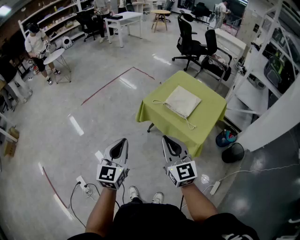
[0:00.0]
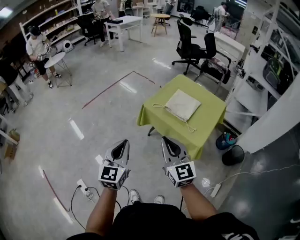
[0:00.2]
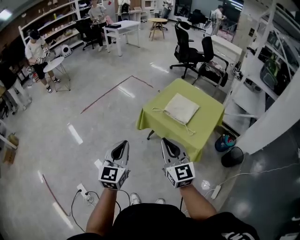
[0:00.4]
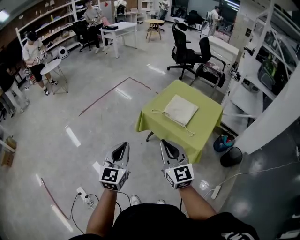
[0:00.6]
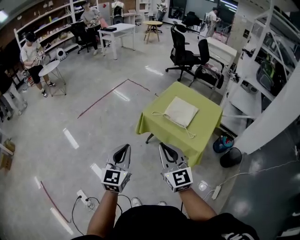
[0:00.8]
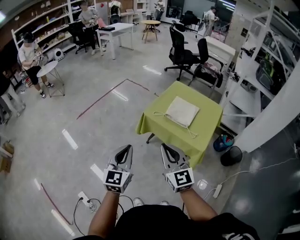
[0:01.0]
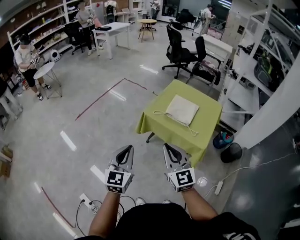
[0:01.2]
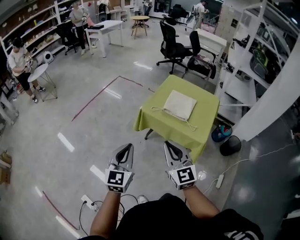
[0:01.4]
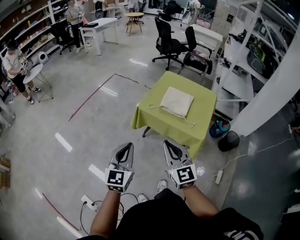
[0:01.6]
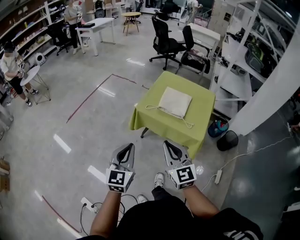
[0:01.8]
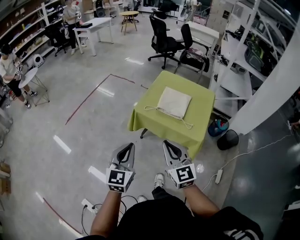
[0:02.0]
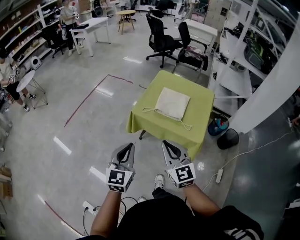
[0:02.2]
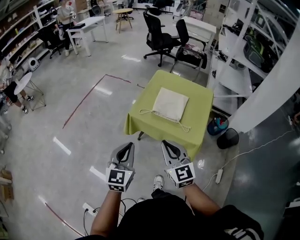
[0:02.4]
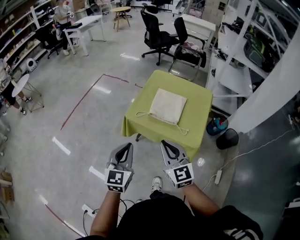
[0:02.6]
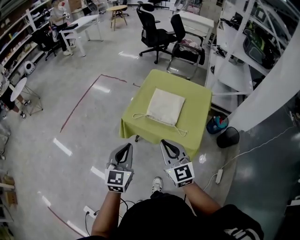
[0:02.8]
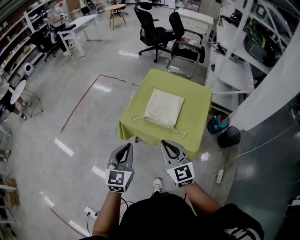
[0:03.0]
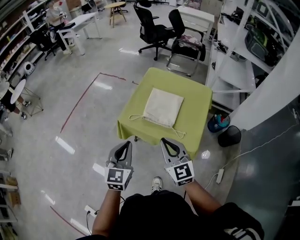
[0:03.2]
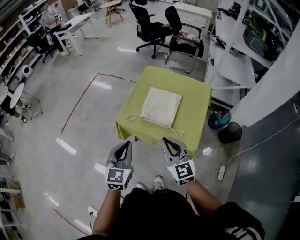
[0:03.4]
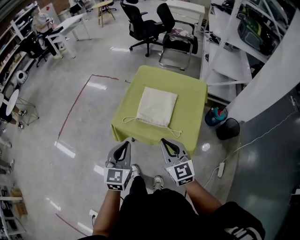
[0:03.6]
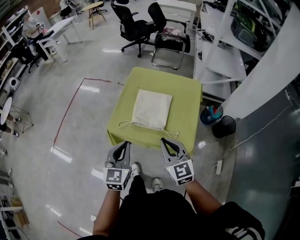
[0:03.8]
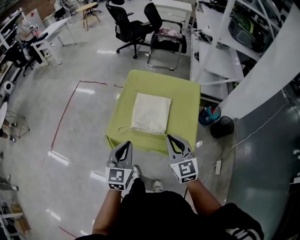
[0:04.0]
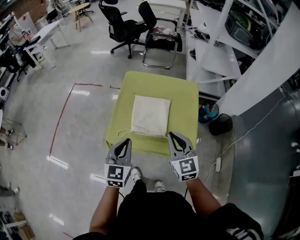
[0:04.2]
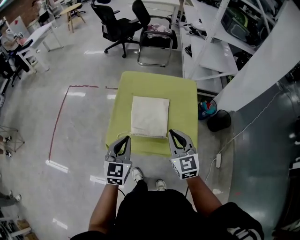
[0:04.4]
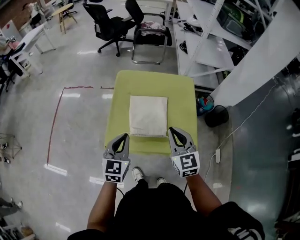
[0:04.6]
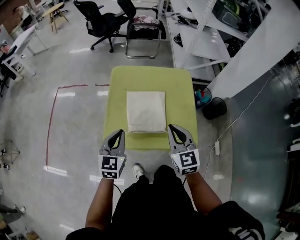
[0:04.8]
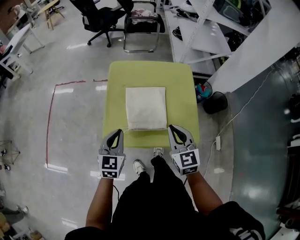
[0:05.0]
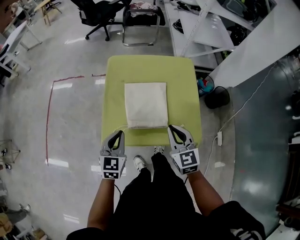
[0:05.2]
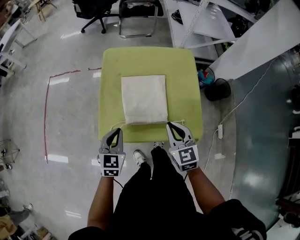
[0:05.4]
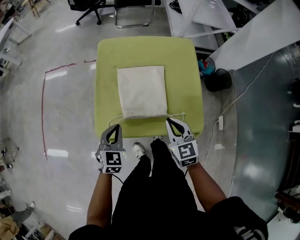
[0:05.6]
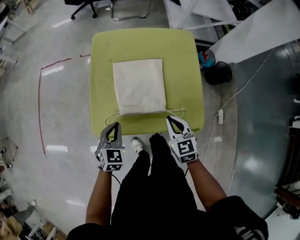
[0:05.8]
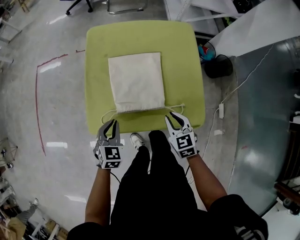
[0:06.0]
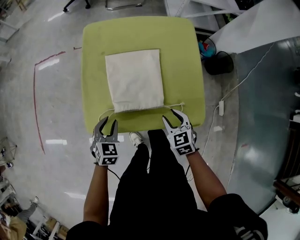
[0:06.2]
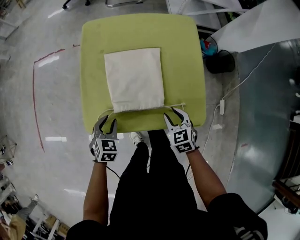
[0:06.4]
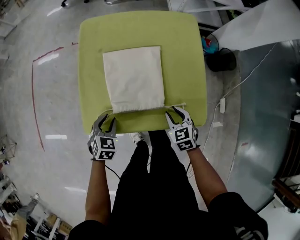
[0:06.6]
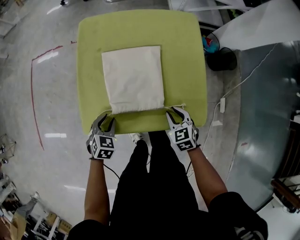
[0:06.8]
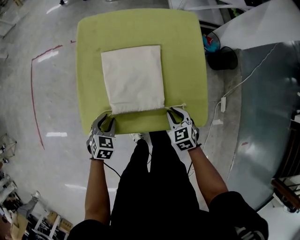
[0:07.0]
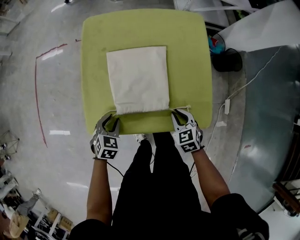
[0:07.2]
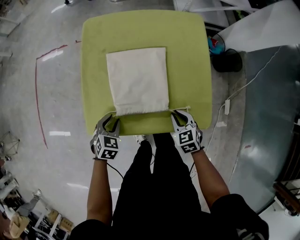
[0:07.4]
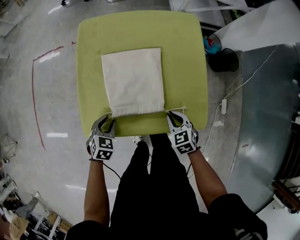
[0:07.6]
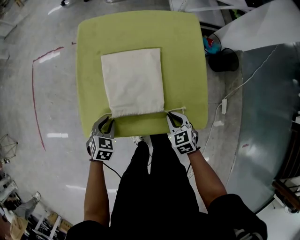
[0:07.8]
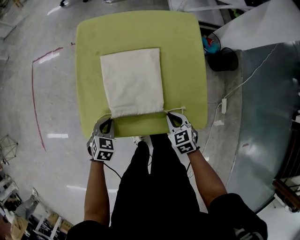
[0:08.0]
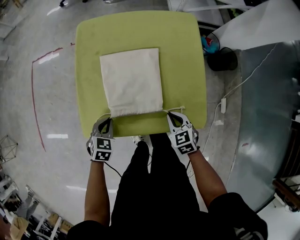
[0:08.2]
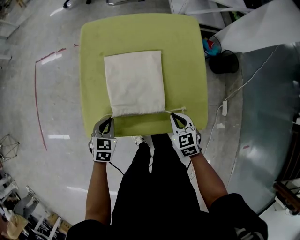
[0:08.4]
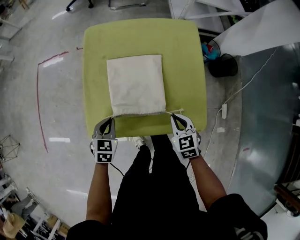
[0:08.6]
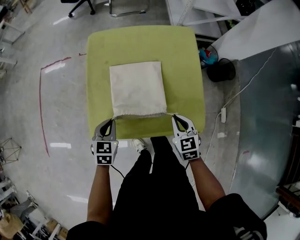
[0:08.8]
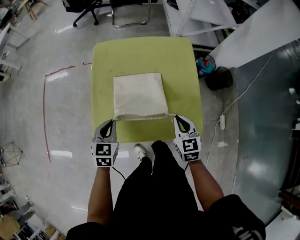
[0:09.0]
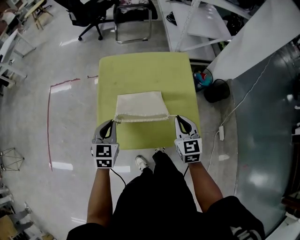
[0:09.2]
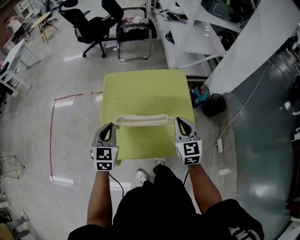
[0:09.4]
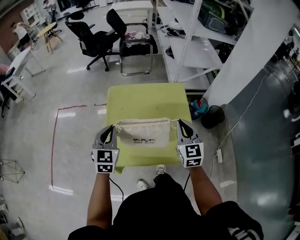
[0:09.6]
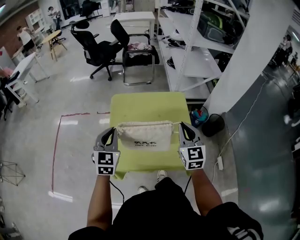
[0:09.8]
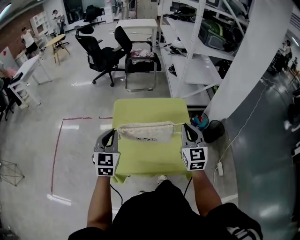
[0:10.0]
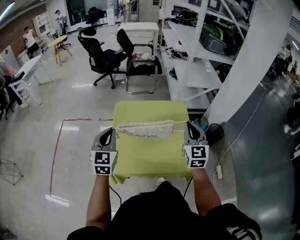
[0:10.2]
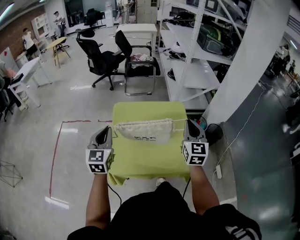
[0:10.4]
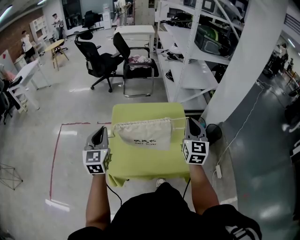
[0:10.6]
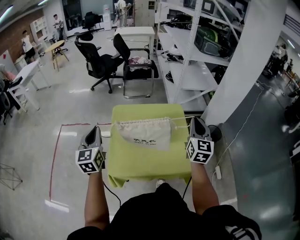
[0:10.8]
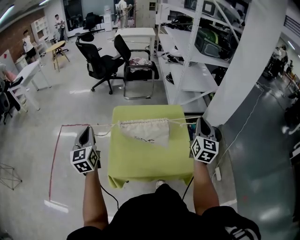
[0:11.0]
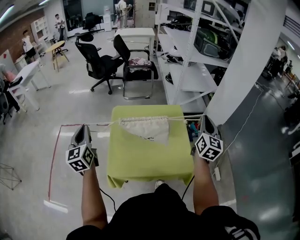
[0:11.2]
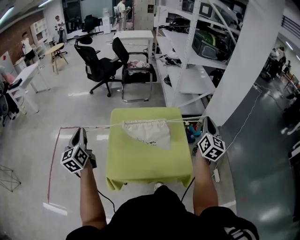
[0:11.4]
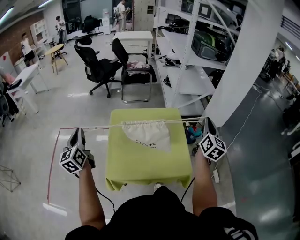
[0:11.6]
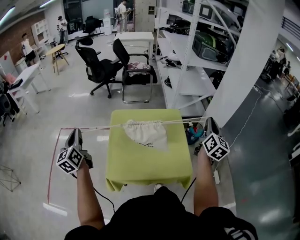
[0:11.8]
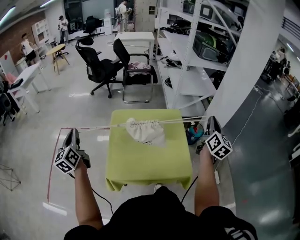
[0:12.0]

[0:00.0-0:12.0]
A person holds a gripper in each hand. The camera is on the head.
0:00.0 to 0:01.6: The right gripper shifts roughly 5 cm to the left, while the left gripper shifts by some 5 cm.
0:01.6 to 0:03.0: The two grippers go about 20 cm forward and to the right.
0:03.0 to 0:04.4: The right gripper heads forward and to the right, covering approximately 20 cm, and changes its angle by about 20 degrees. Meanwhile the left gripper is displaced forward by roughly 20 cm.
0:04.4 to 0:06.0: Both grippers travel together downward, roughly 25 cm. The right gripper swivels roughly 30 degrees. The left gripper turns by about 30 degrees.
0:06.0 to 0:07.6: The grippers both shift downward by roughly 5 cm. The left gripper opens its fingers; the right gripper opens, then closes once more.
0:07.6 to 0:09.0: Both grippers move upward, approximately 15 cm. The right gripper turns by some 20 degrees. Meanwhile the left gripper changes its angle by approximately 20 degrees, and closes.
0:09.0 to 0:10.4: Both grippers move upward, roughly 25 cm. The left gripper tips its fingers upward by some 30 degrees. Meanwhile the right gripper tilts its fingers roughly 30 degrees upward.
0:10.4 to 0:12.0: The right gripper is displaced to the right by some 15 cm, and swivels about 30 degrees. Meanwhile the left gripper is displaced to the left by approximately 15 cm, and swivels about 30 degrees.

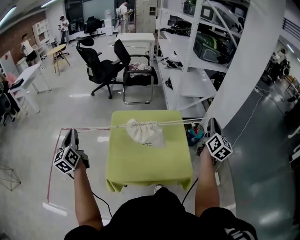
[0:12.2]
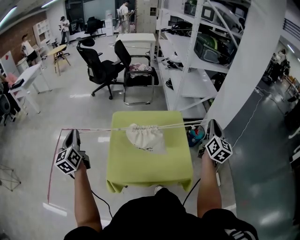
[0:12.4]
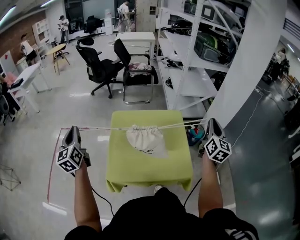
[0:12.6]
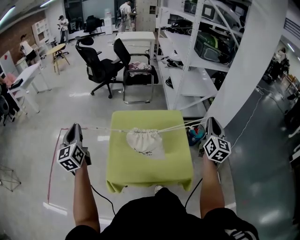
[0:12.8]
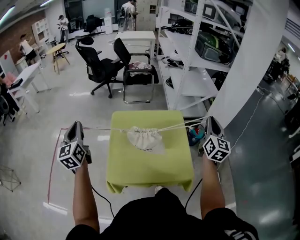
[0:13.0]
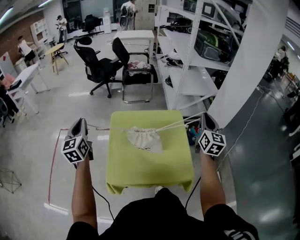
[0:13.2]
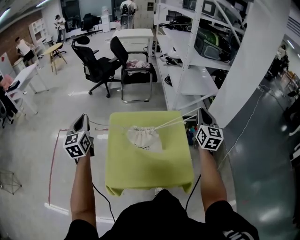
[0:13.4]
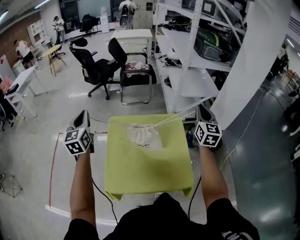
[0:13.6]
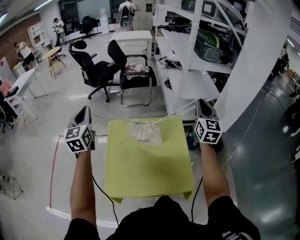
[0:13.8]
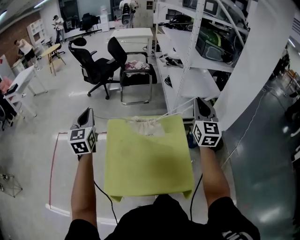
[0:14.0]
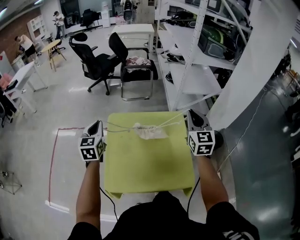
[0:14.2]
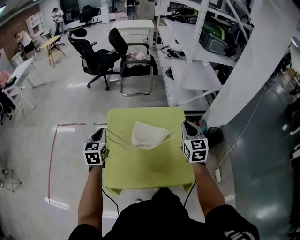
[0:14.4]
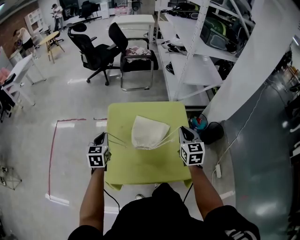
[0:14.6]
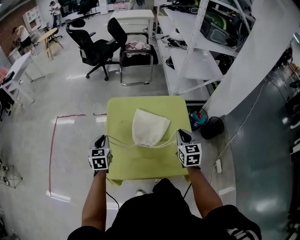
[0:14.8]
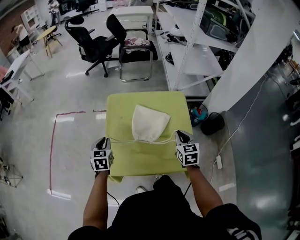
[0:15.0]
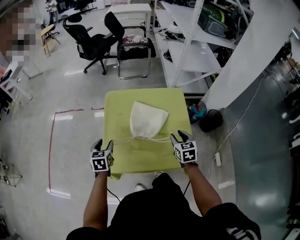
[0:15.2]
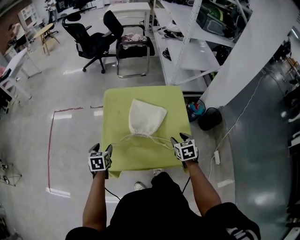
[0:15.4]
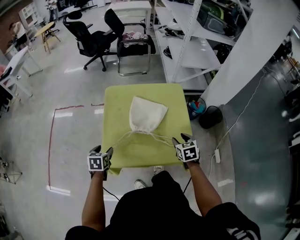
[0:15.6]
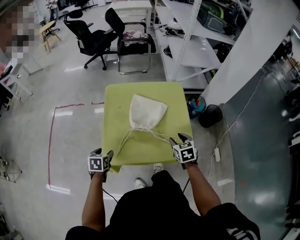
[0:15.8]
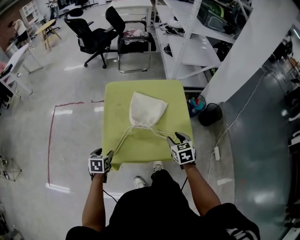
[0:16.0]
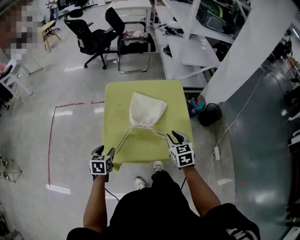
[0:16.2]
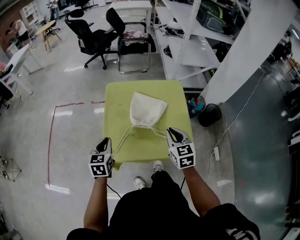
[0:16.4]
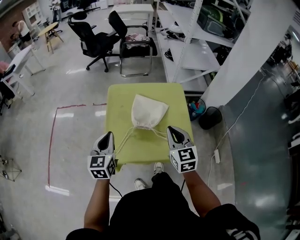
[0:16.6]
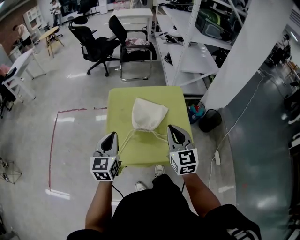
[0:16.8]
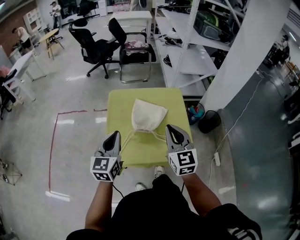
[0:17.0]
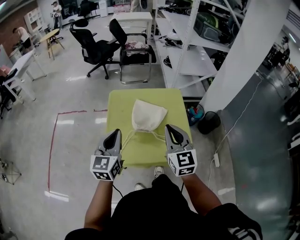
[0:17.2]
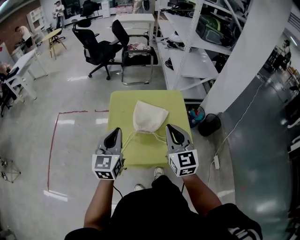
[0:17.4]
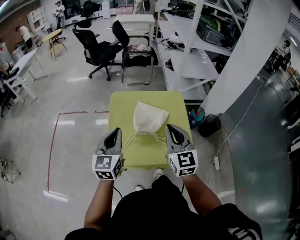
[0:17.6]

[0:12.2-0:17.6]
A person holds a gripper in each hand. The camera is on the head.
0:12.2 to 0:13.6: The left gripper goes about 20 cm forward and to the right, and changes its angle by some 20 degrees. The right gripper heads forward and to the left, covering approximately 15 cm, and changes its angle by about 30 degrees.
0:13.6 to 0:15.0: The left gripper goes roughly 30 cm downward and backward, and angles its fingers downward, by roughly 30 degrees, while the right gripper travels downward, backward and to the left by approximately 30 cm, and changes its angle by some 30 degrees.
0:15.0 to 0:16.2: The grippers both shift backward by roughly 10 cm. The left gripper opens; the right gripper opens.
0:16.2 to 0:17.6: Both grippers move upward, some 20 cm. The left gripper tilts its fingers some 40 degrees upward, and closes its fingers; the right gripper tilts its fingers some 30 degrees upward, and closes up.

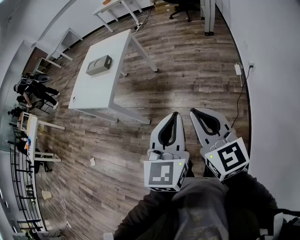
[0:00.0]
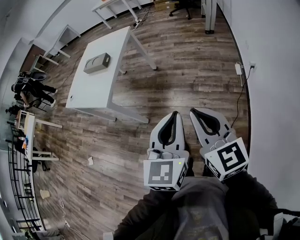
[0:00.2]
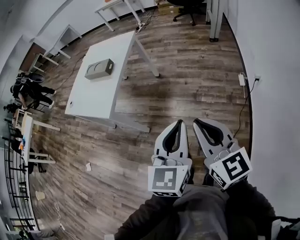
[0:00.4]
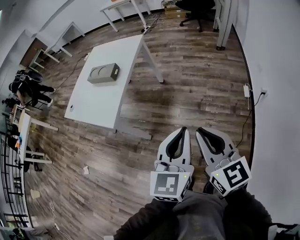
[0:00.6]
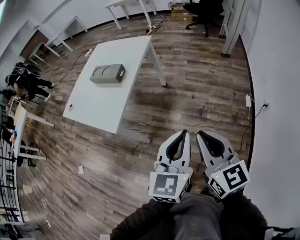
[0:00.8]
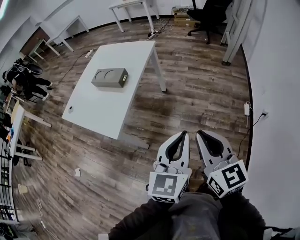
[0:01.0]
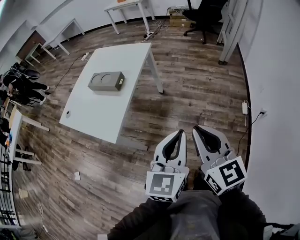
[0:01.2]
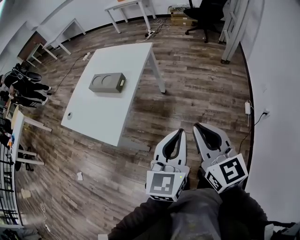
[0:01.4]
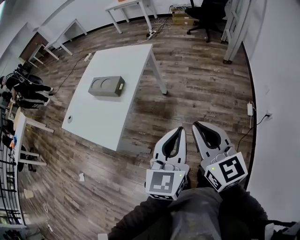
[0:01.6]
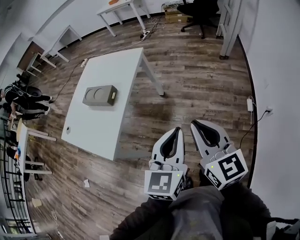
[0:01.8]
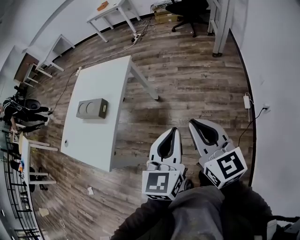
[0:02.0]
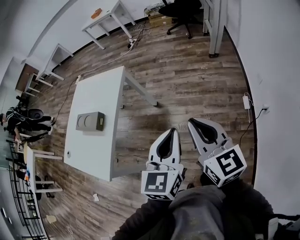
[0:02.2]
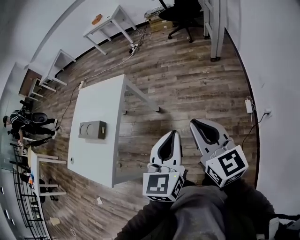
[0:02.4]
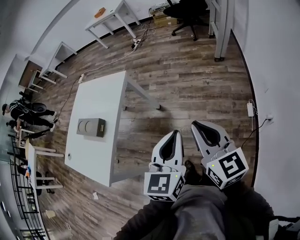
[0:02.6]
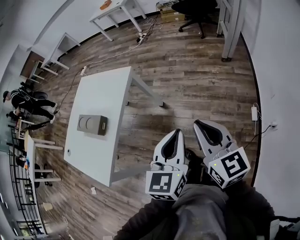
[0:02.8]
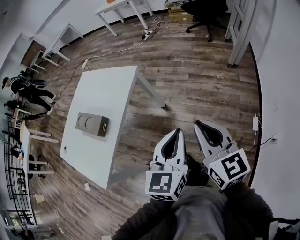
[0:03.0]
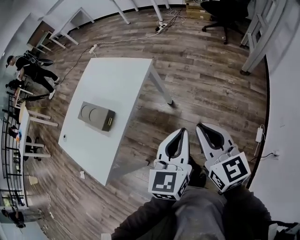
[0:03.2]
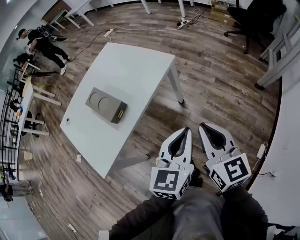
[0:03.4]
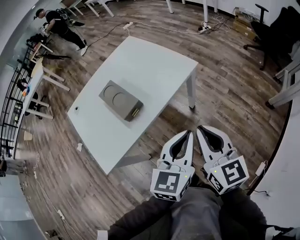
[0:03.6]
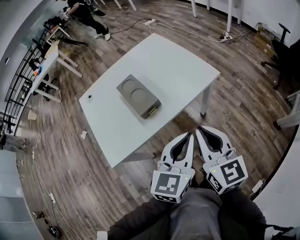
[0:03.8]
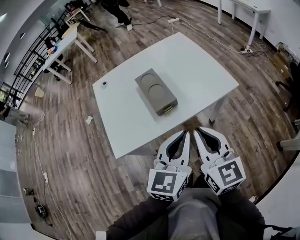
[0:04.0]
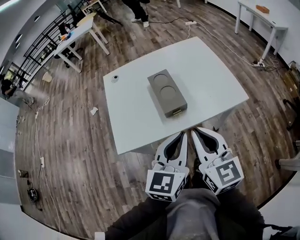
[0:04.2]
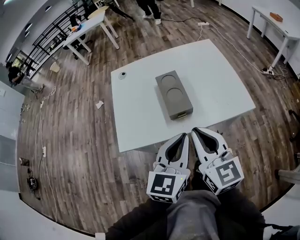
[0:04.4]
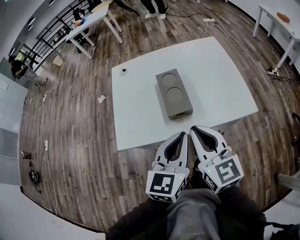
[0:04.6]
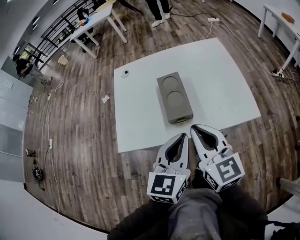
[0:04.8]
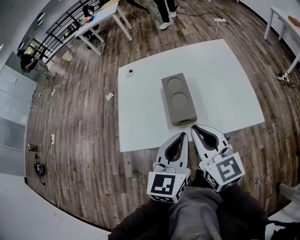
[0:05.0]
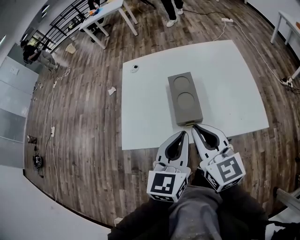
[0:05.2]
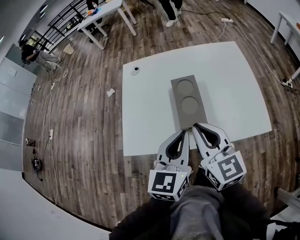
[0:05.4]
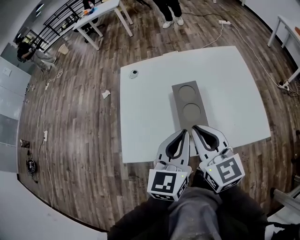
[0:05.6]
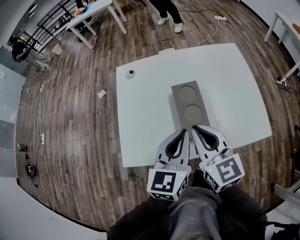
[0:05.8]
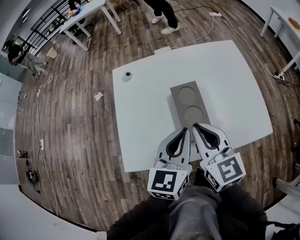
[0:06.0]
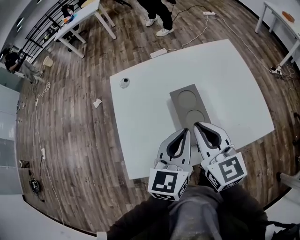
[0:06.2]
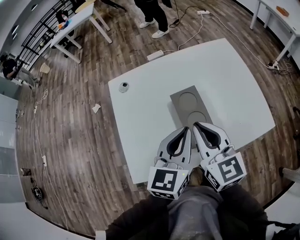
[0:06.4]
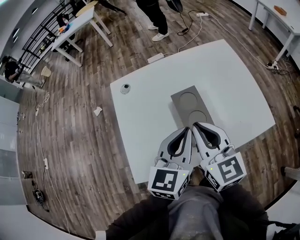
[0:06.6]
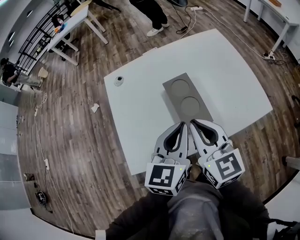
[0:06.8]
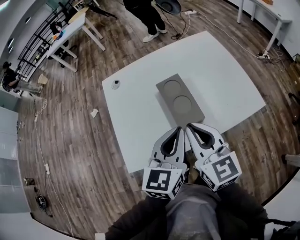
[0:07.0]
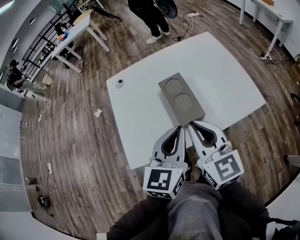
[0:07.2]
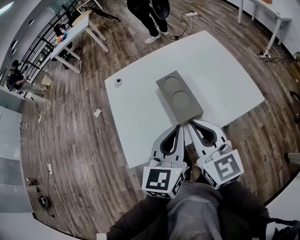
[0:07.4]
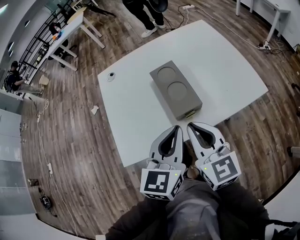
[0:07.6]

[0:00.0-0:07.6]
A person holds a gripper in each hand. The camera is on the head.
0:00.0 to 0:01.6: The two grippers go approximately 30 cm forward.
0:01.6 to 0:03.0: The grippers both shift forward and to the right by roughly 30 cm.
0:03.0 to 0:04.6: The left gripper shifts by roughly 35 cm, and turns by roughly 60 degrees, while the right gripper changes place by roughly 40 cm, and swivels about 60 degrees.
0:04.6 to 0:06.0: Both grippers travel together forward, approximately 15 cm.
0:06.0 to 0:07.6: Both grippers travel together backward, about 10 cm.
